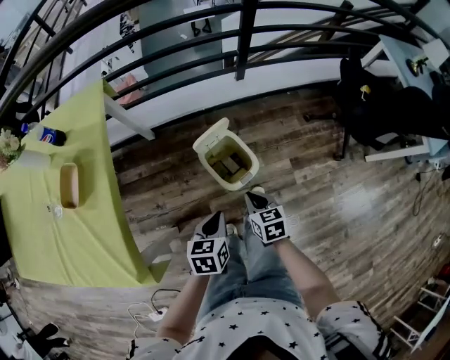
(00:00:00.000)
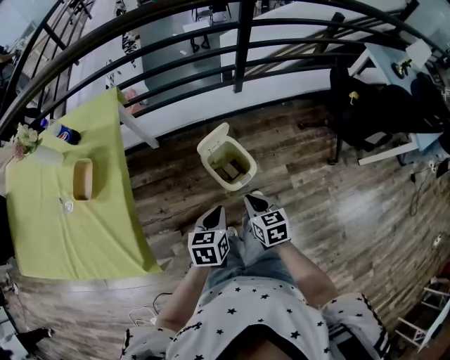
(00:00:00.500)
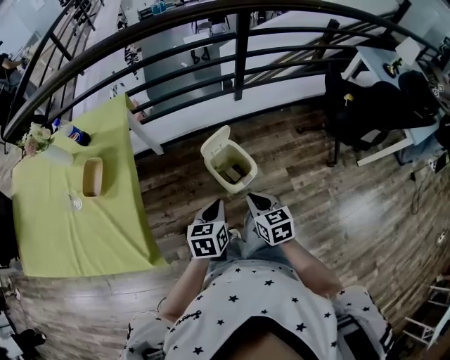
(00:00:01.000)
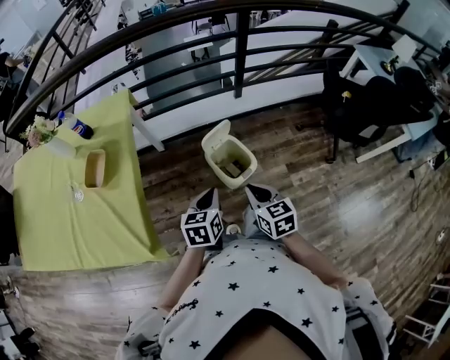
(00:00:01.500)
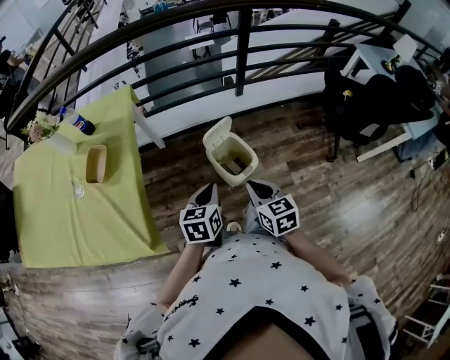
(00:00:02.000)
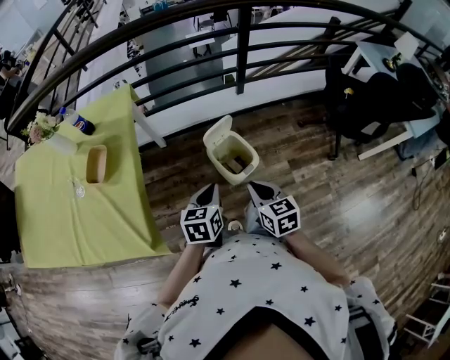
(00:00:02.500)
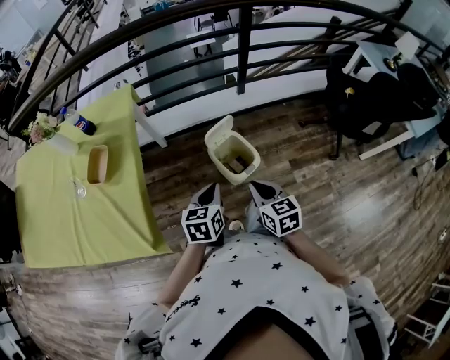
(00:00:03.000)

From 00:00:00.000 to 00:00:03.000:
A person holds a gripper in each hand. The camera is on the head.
From 00:00:00.000 to 00:00:01.500: The left gripper travels upward by approximately 10 cm; the right gripper heads upward and backward, covering roughly 20 cm.
From 00:00:01.500 to 00:00:03.000: Neither gripper changes place.

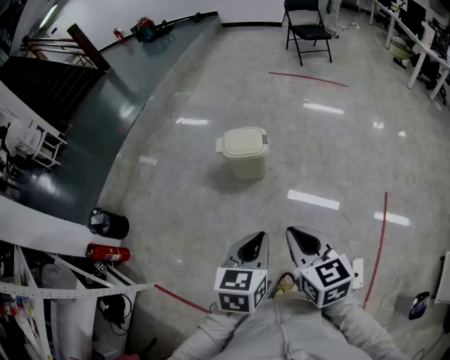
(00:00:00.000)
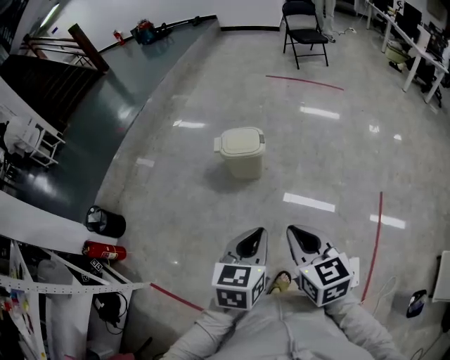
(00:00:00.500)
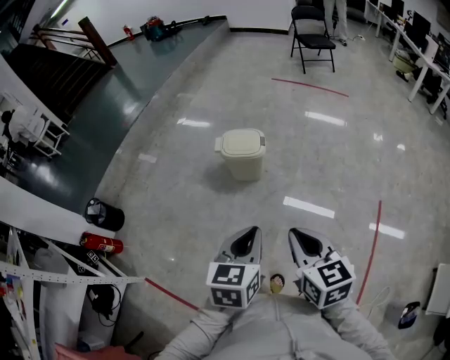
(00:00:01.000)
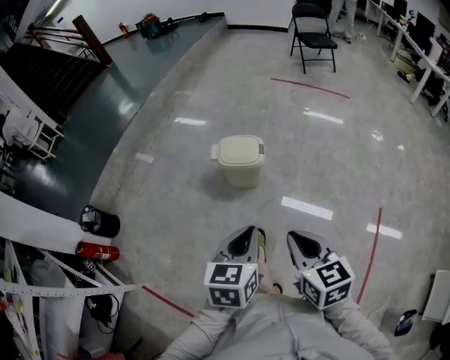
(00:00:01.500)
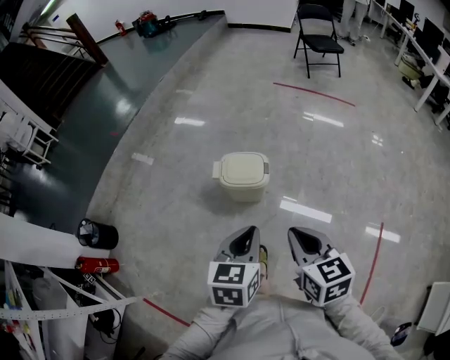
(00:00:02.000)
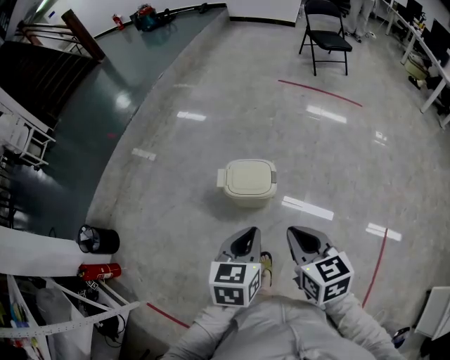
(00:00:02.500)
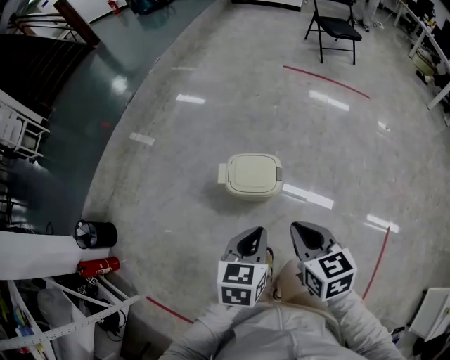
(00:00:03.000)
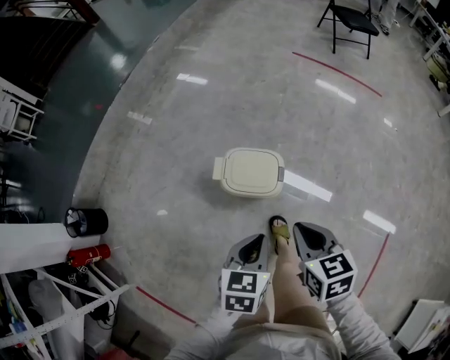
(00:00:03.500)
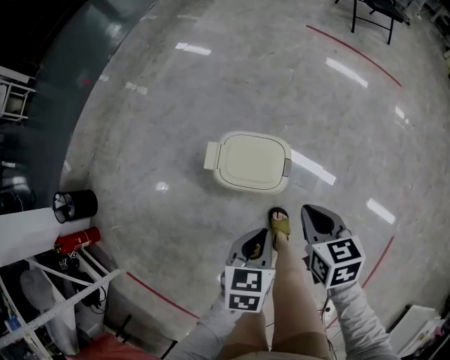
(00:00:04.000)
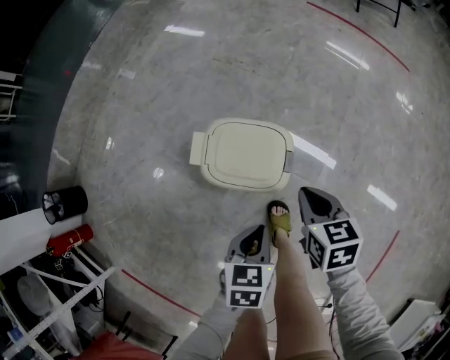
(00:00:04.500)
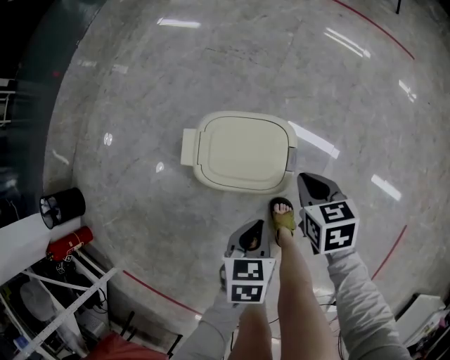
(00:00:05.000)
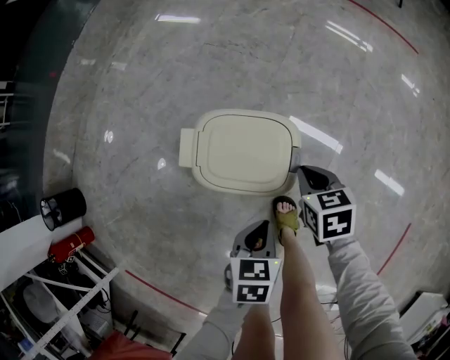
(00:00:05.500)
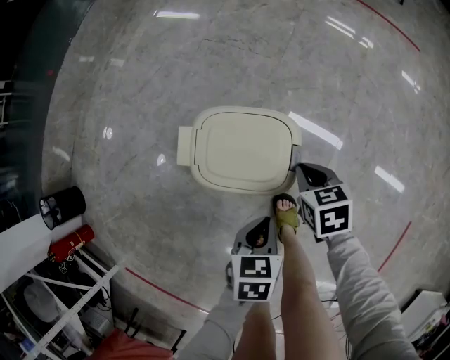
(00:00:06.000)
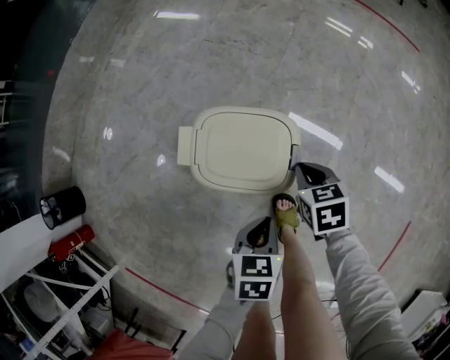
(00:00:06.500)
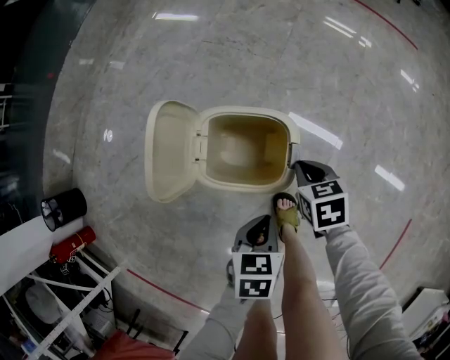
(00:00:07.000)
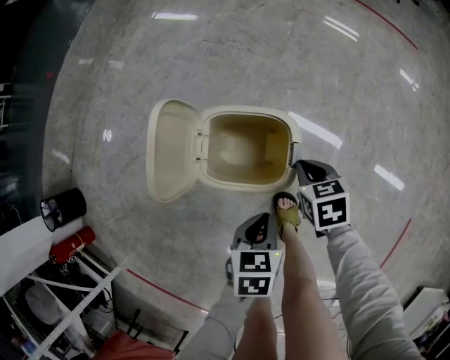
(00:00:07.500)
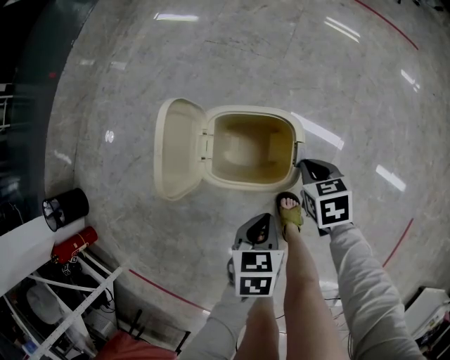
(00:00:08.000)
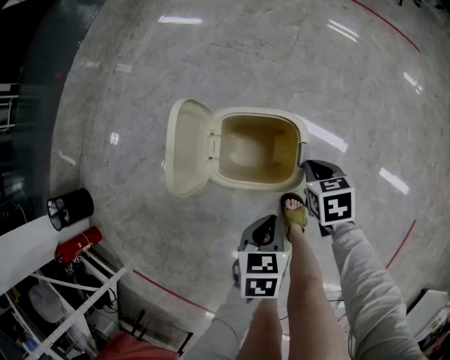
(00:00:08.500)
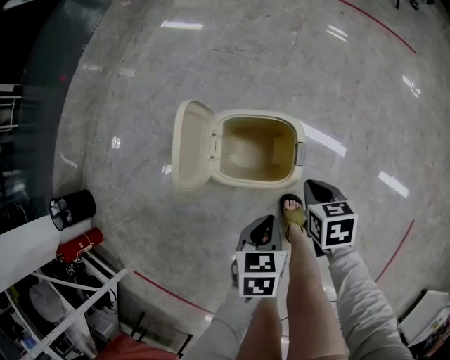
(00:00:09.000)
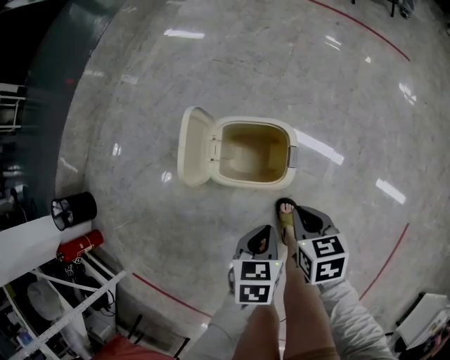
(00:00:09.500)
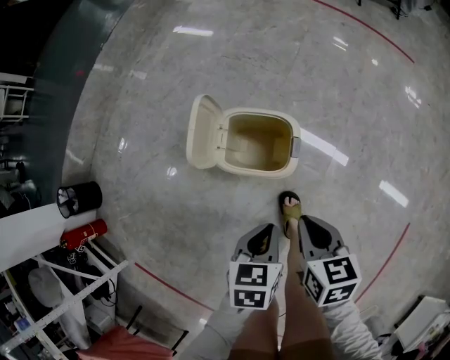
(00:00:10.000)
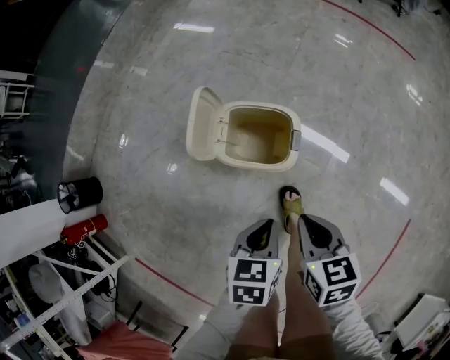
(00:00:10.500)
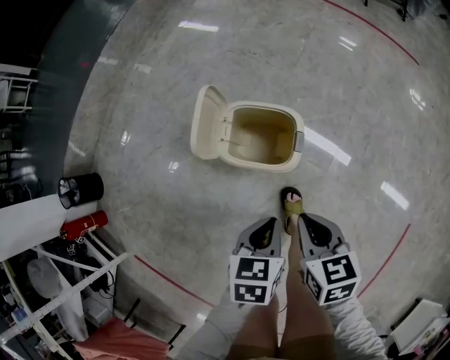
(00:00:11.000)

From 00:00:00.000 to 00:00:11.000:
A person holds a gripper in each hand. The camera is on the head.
From 00:00:00.000 to 00:00:02.000: The two grippers go approximately 20 cm forward.
From 00:00:02.000 to 00:00:03.500: Both grippers move forward and downward, approximately 20 cm.
From 00:00:03.500 to 00:00:05.500: The left gripper moves downward, roughly 30 cm, while the right gripper travels downward and forward by some 40 cm.
From 00:00:05.500 to 00:00:07.500: The grippers move only a little.
From 00:00:07.500 to 00:00:09.000: The right gripper goes approximately 5 cm backward.
From 00:00:09.000 to 00:00:11.000: The left gripper heads upward, covering approximately 10 cm; the right gripper shifts about 20 cm upward and backward.

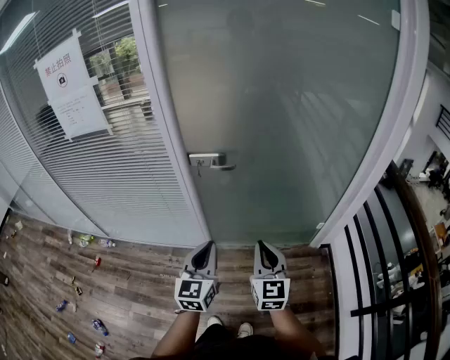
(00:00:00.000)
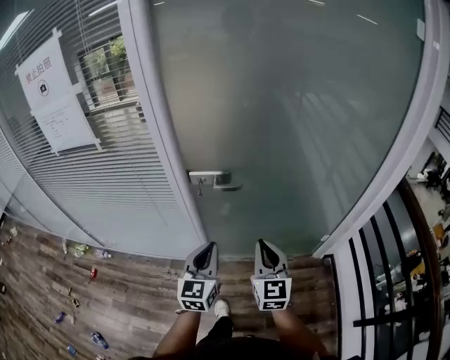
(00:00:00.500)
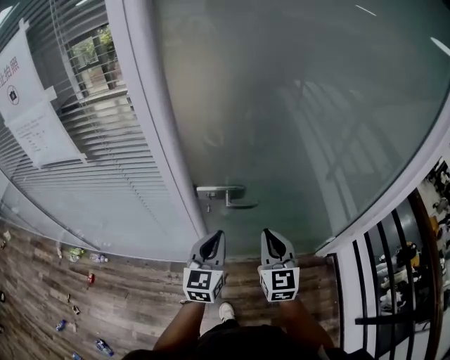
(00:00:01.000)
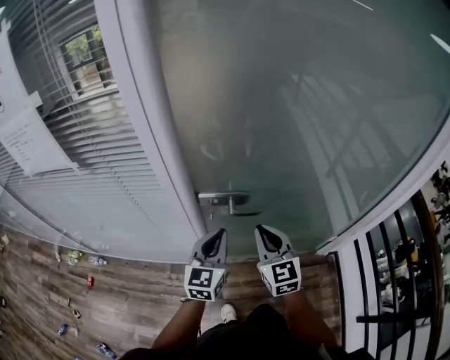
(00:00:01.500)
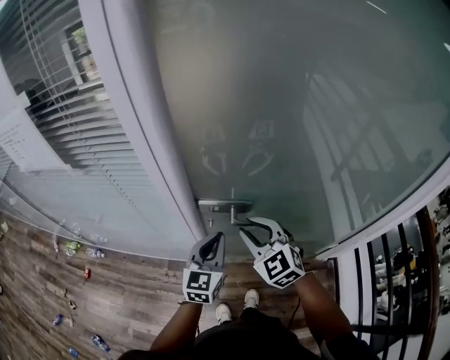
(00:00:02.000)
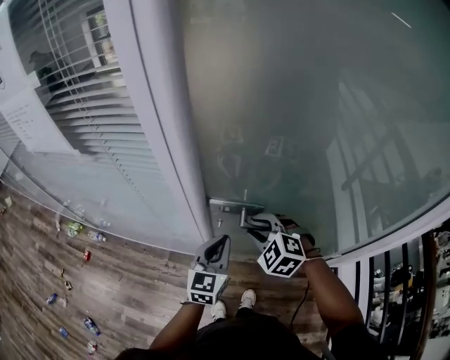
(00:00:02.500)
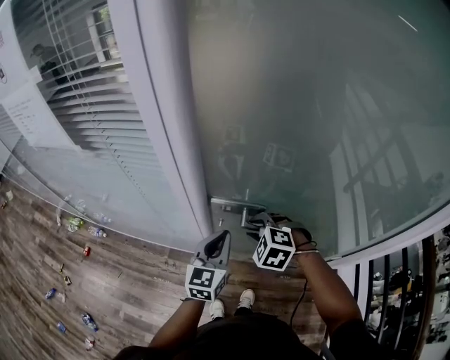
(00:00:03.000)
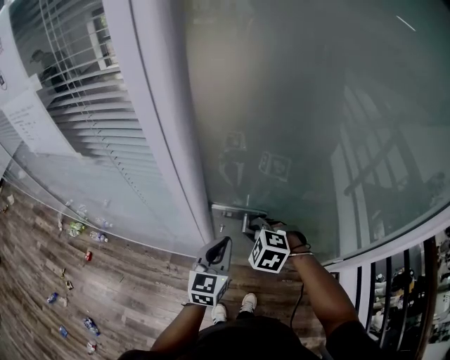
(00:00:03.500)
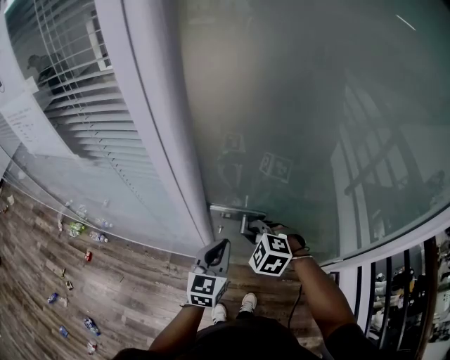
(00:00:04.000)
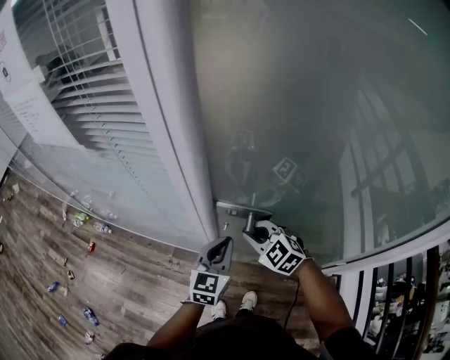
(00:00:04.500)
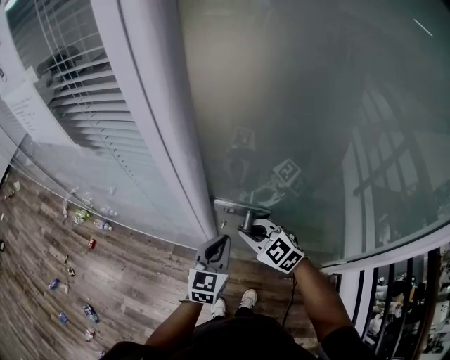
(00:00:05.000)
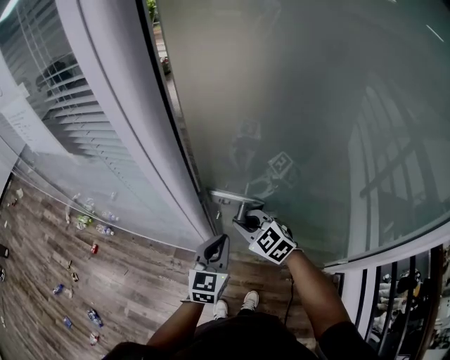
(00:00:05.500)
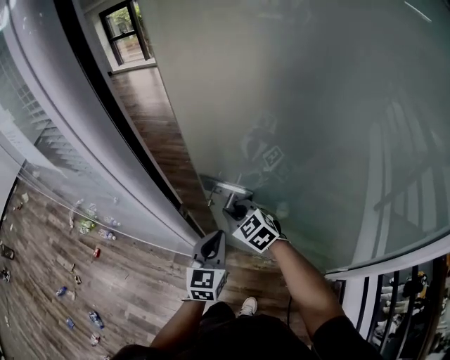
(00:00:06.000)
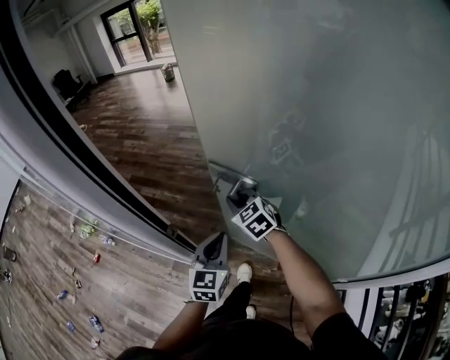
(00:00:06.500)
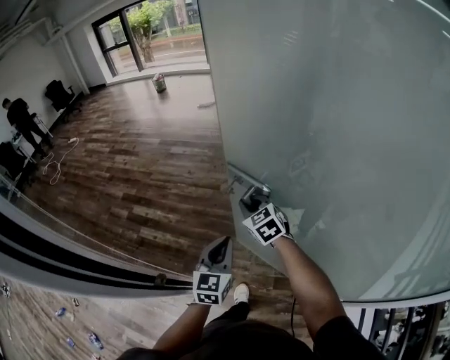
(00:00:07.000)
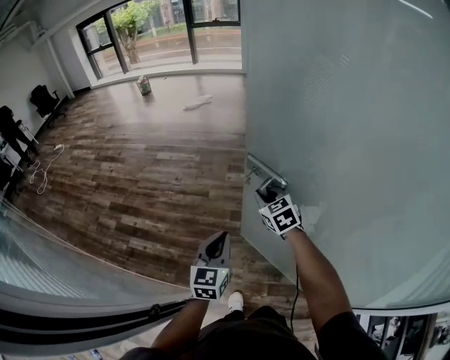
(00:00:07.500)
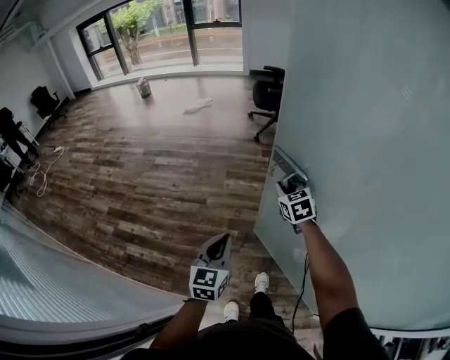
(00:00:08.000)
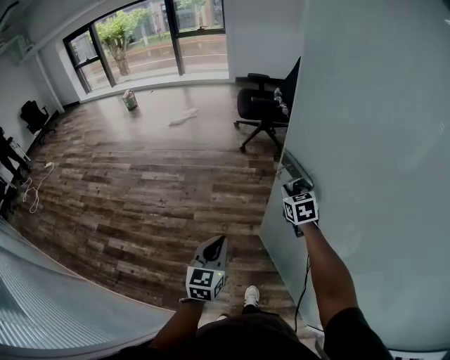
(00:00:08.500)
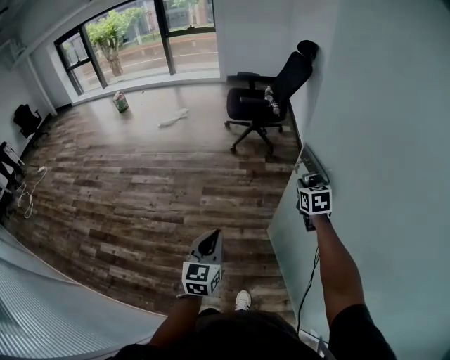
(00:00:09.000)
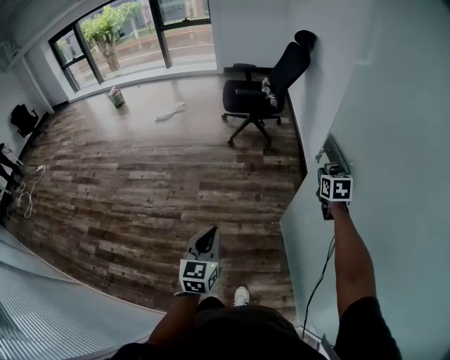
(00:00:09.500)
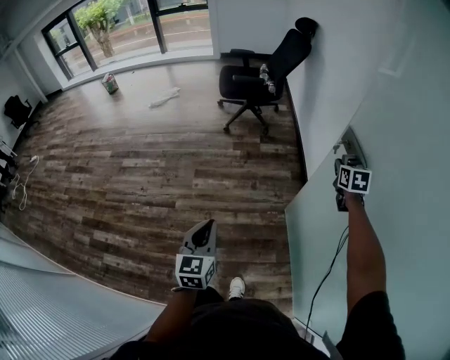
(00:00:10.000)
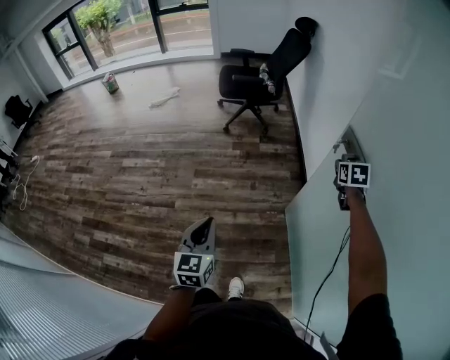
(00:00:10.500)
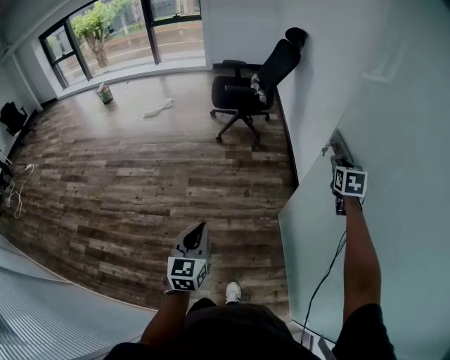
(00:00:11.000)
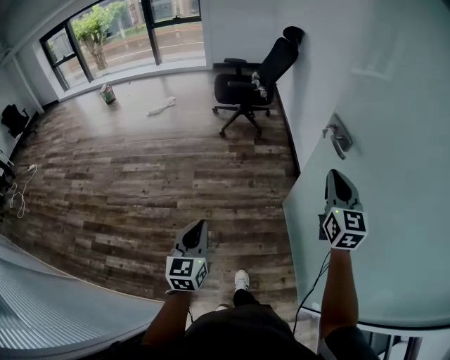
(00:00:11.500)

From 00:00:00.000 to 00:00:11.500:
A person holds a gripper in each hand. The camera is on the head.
From 00:00:00.000 to 00:00:02.000: The right gripper shifts roughly 40 cm forward and to the left, rotates about 40 degrees, and opens its fingers. The left gripper is displaced forward by some 35 cm.
From 00:00:02.000 to 00:00:04.000: The right gripper goes roughly 10 cm downward, and turns by about 40 degrees.
From 00:00:04.000 to 00:00:06.000: The right gripper shifts about 15 cm forward, and turns by about 30 degrees. Meanwhile the left gripper travels forward and to the right by about 10 cm.
From 00:00:06.000 to 00:00:07.500: Both grippers travel together forward and to the right, about 40 cm. The right gripper swivels roughly 30 degrees.
From 00:00:07.500 to 00:00:09.500: The right gripper is displaced to the right and forward by approximately 60 cm, and swivels some 40 degrees. The left gripper goes about 35 cm forward and to the right.
From 00:00:09.500 to 00:00:11.500: The right gripper heads backward and upward, covering roughly 30 cm, tilts its fingers approximately 30 degrees upward, and opens, then closes once more. Meanwhile the left gripper goes about 15 cm backward.

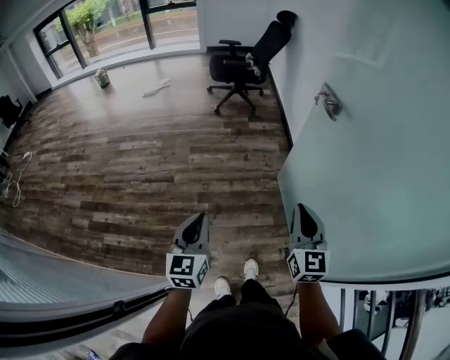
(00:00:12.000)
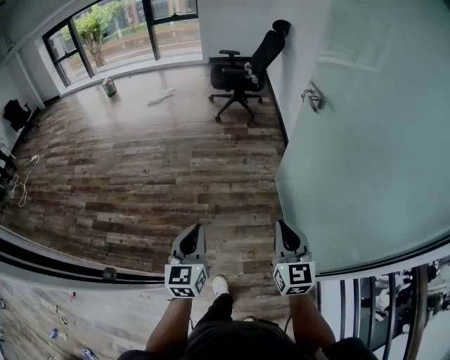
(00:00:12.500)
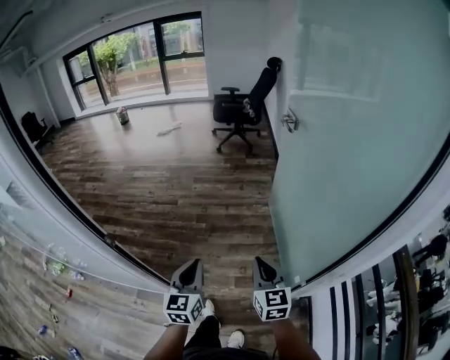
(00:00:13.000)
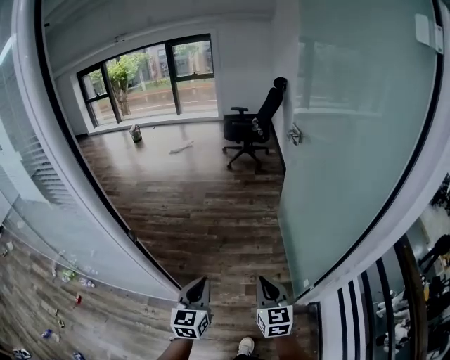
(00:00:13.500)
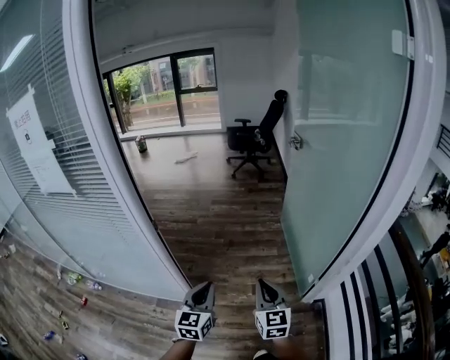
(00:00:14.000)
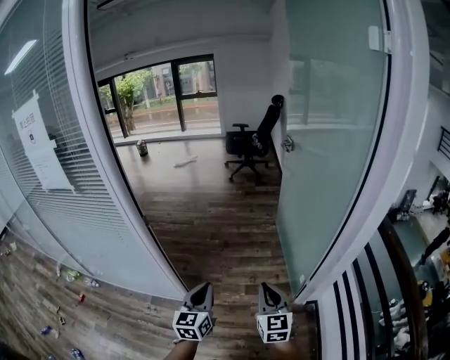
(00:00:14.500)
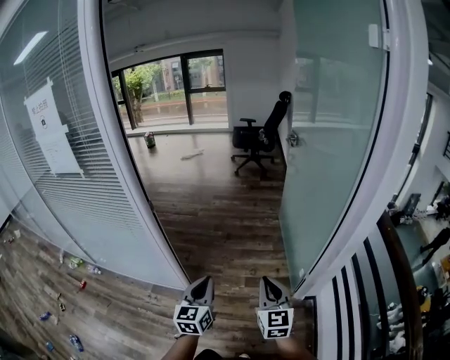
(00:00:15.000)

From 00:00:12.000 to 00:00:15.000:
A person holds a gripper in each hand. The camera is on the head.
From 00:00:12.000 to 00:00:13.500: Both grippers are carried backward, roughly 50 cm.
From 00:00:13.500 to 00:00:15.000: Both grippers travel together backward, about 20 cm.
